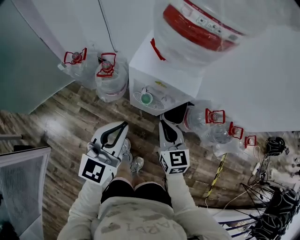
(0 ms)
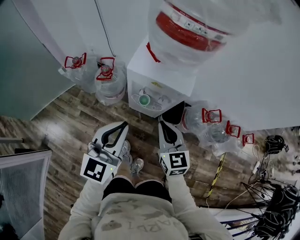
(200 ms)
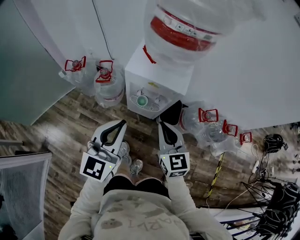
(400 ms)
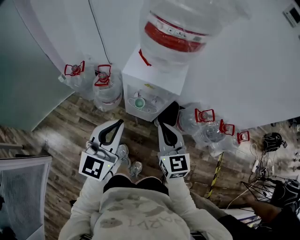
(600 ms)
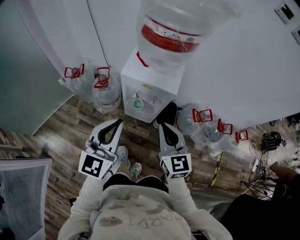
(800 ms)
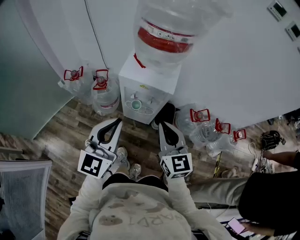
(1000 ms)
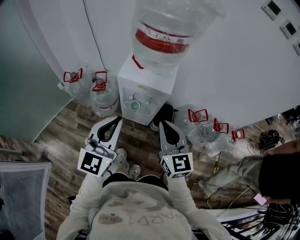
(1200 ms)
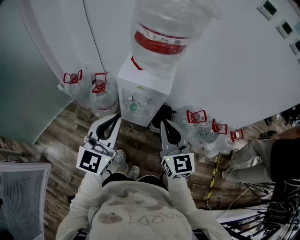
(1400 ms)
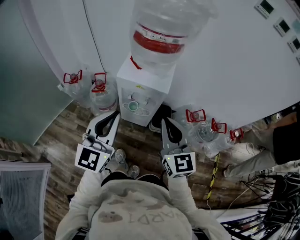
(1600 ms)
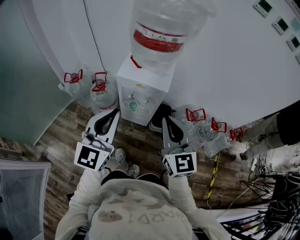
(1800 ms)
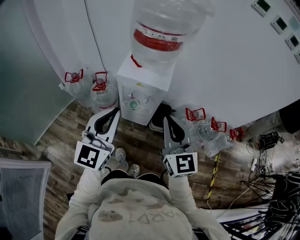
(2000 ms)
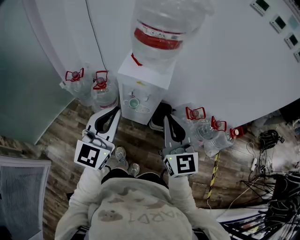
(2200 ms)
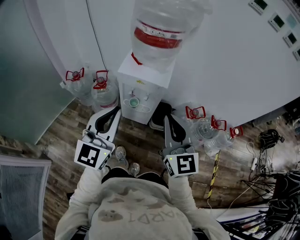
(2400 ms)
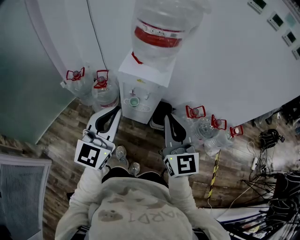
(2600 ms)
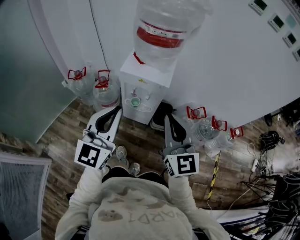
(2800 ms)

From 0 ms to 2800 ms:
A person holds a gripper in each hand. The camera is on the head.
From 0 ms to 1400 ms: The right gripper heads upward and backward, covering about 20 cm. The left gripper travels upward and backward by some 15 cm.
From 1400 ms to 2800 ms: The right gripper is displaced backward and upward by approximately 10 cm. Meanwhile the left gripper is displaced backward by some 5 cm.

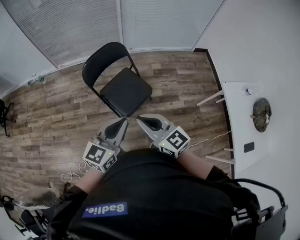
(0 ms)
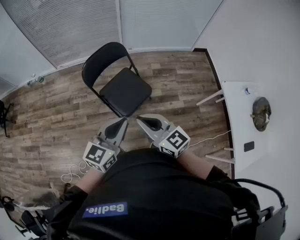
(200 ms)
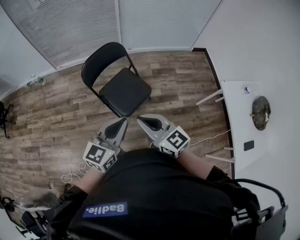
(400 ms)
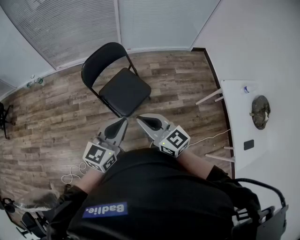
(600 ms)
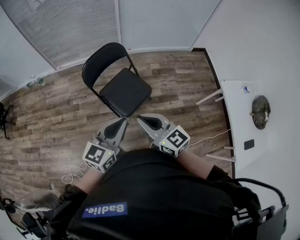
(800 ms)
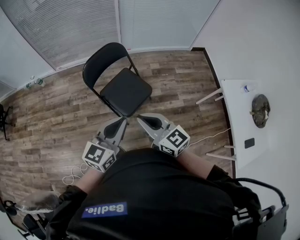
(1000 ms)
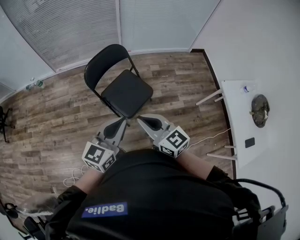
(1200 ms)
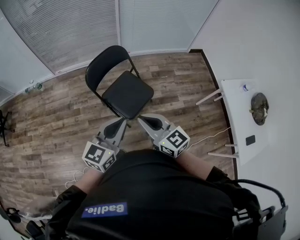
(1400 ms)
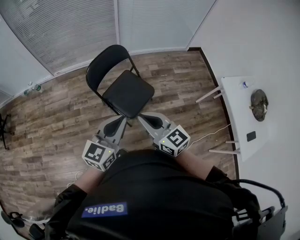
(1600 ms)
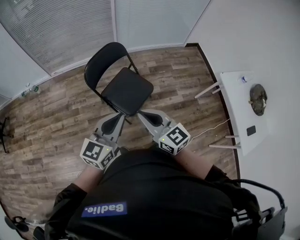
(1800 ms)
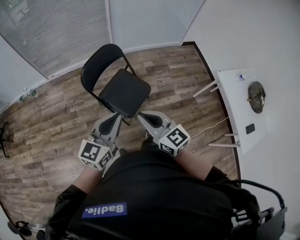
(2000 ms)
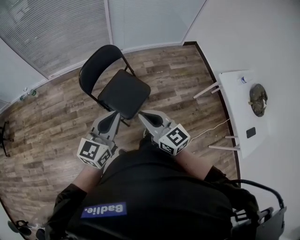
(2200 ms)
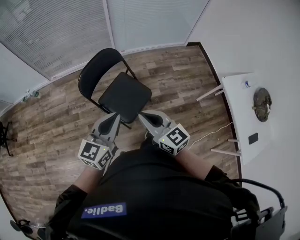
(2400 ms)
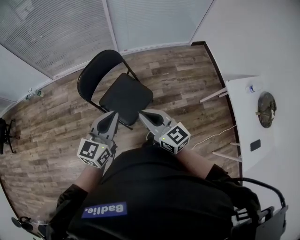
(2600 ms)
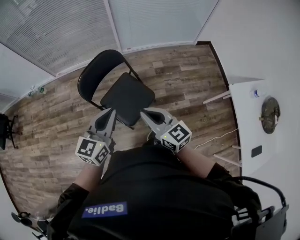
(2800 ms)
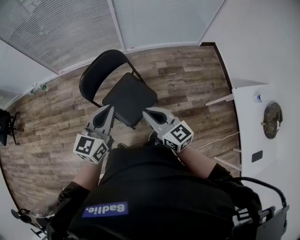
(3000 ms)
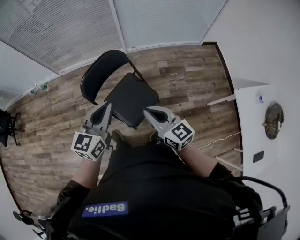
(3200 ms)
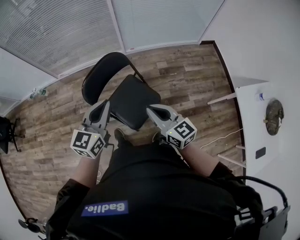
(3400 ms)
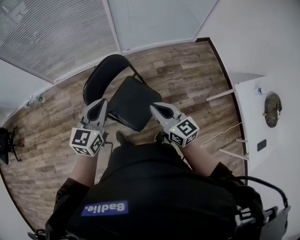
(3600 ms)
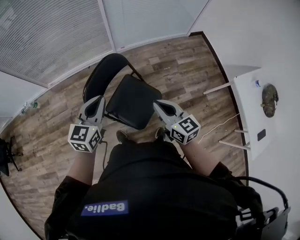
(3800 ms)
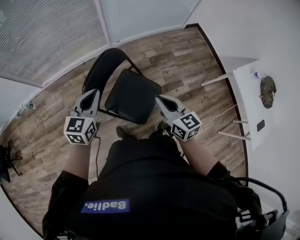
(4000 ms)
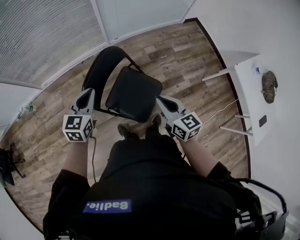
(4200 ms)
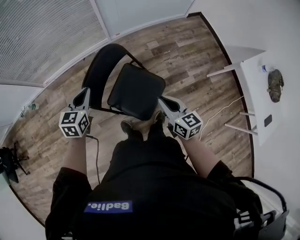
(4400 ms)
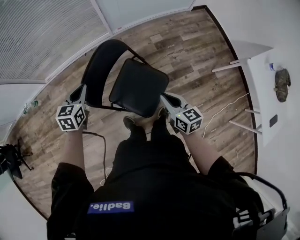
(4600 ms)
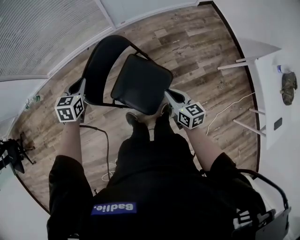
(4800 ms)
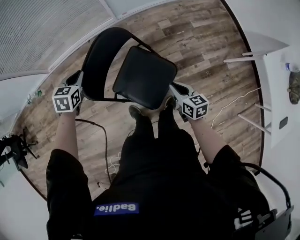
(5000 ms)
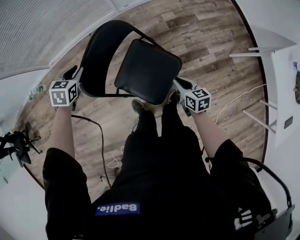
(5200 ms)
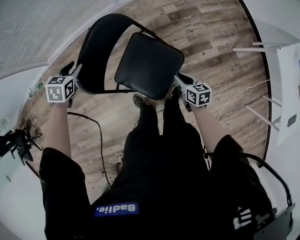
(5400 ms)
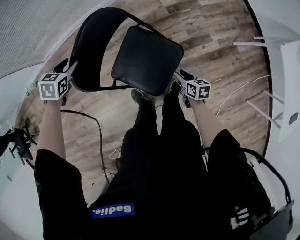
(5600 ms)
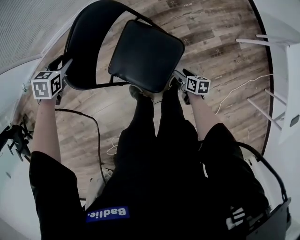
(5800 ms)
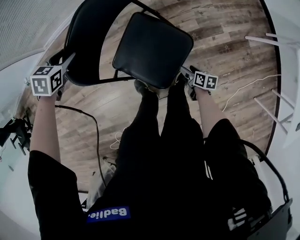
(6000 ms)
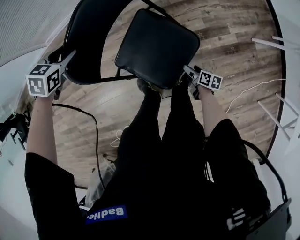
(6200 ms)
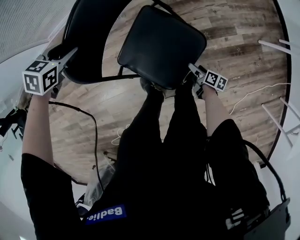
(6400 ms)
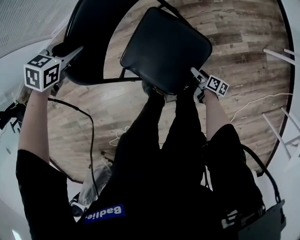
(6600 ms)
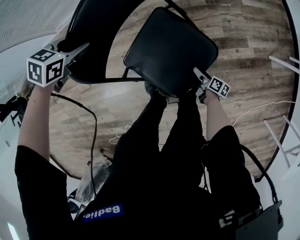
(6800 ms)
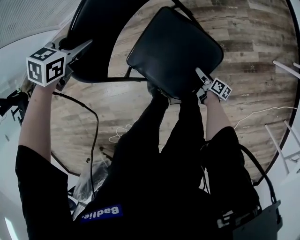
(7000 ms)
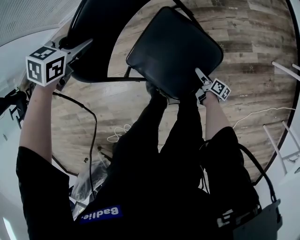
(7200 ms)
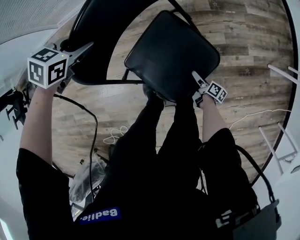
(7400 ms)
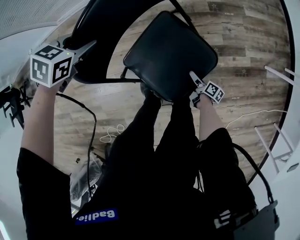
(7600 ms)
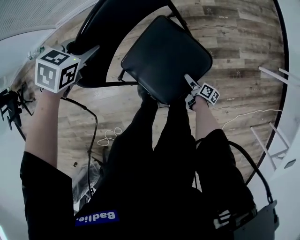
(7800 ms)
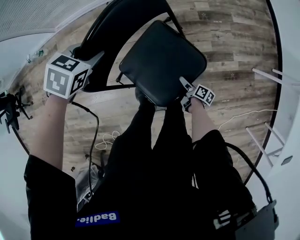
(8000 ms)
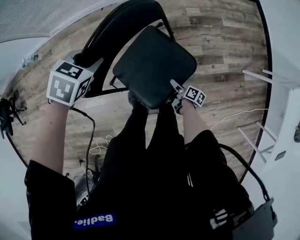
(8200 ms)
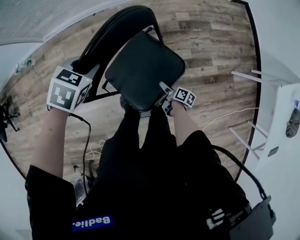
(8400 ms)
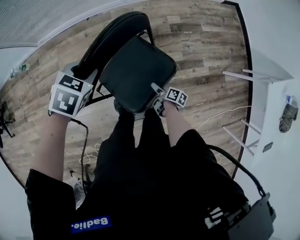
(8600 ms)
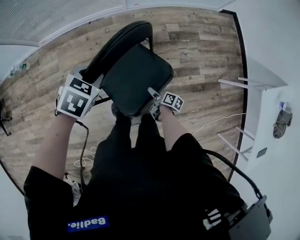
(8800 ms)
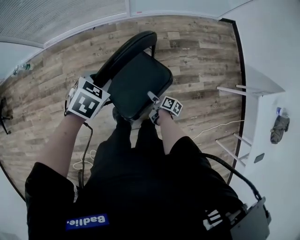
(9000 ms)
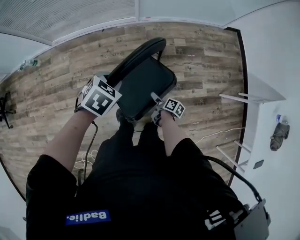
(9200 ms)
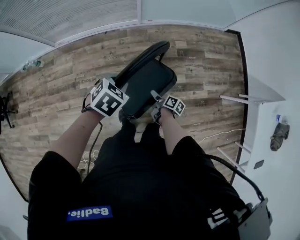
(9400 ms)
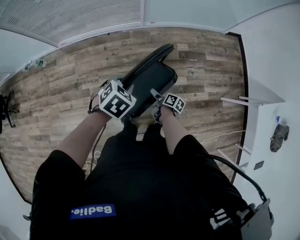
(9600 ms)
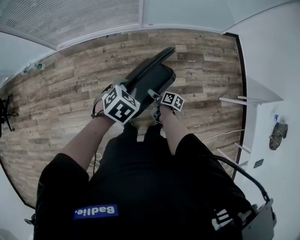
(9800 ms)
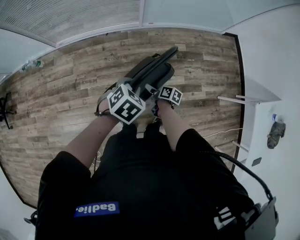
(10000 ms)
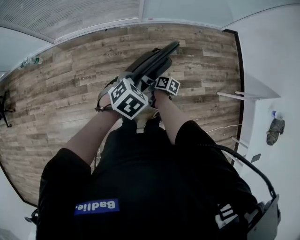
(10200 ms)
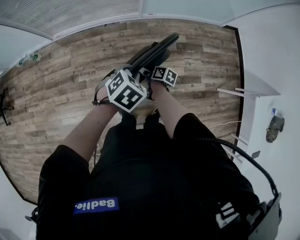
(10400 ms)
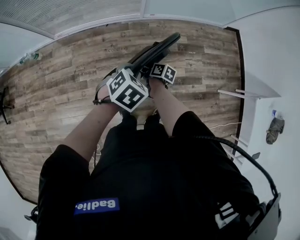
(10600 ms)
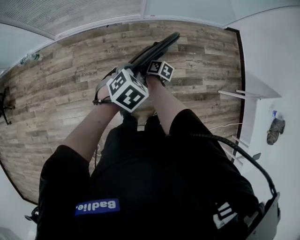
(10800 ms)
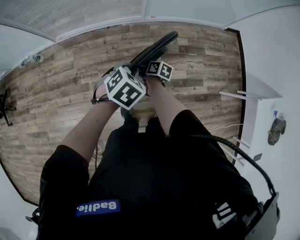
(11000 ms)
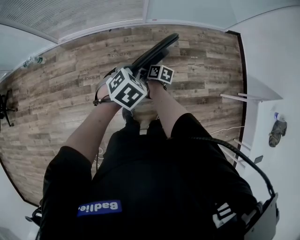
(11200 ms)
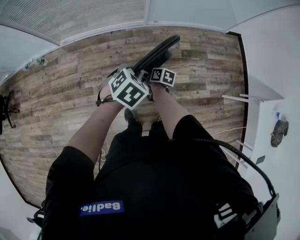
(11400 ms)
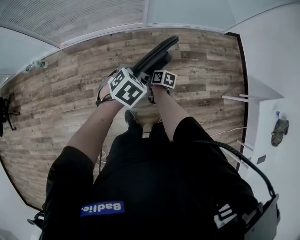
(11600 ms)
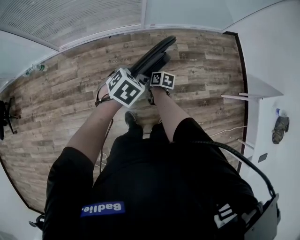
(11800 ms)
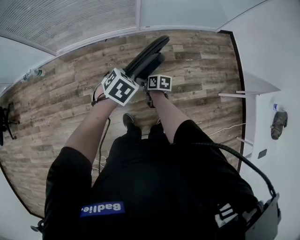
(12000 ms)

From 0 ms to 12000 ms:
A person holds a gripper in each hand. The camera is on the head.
From 0 ms to 1600 ms: Both grippers move to the left, about 10 cm.
From 1600 ms to 3000 ms: The two grippers go about 20 cm forward and to the right.
From 3000 ms to 4400 ms: The right gripper travels downward, forward and to the left by about 20 cm, and swivels roughly 30 degrees, while the left gripper moves forward, to the left and downward, roughly 35 cm, and turns by roughly 20 degrees.
From 4400 ms to 6000 ms: The left gripper shifts about 25 cm downward and forward, points its fingers approximately 30 degrees further downward, and opens. The right gripper moves downward, roughly 50 cm, rotates some 50 degrees, and opens up.
From 6000 ms to 7600 ms: The right gripper travels downward by roughly 10 cm, and swivels approximately 20 degrees.
From 7600 ms to 9000 ms: The right gripper heads upward, covering roughly 20 cm, while the left gripper moves upward, to the right and backward, about 15 cm.
From 9000 ms to 10400 ms: The right gripper goes roughly 25 cm to the left, upward and forward. Meanwhile the left gripper is displaced upward by roughly 5 cm.
From 10400 ms to 12000 ms: The grippers stay close to where they were, moving slightly.

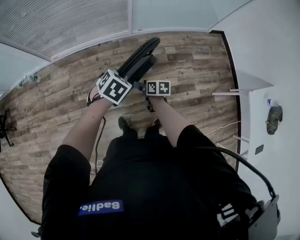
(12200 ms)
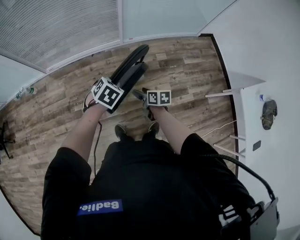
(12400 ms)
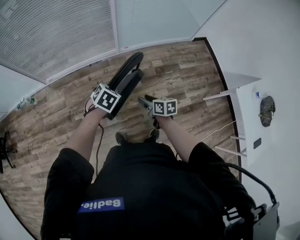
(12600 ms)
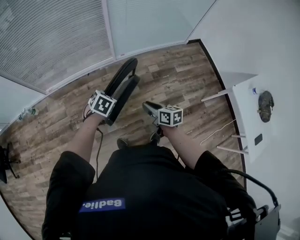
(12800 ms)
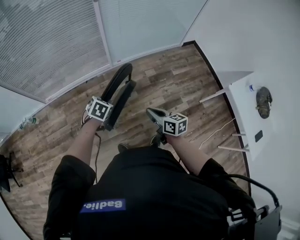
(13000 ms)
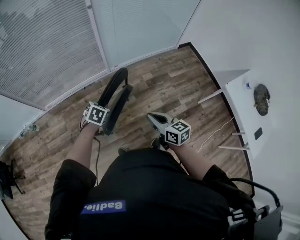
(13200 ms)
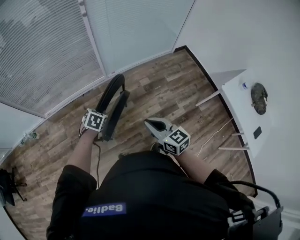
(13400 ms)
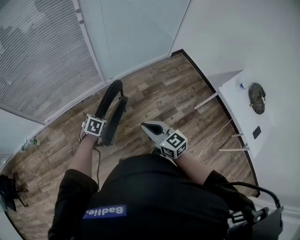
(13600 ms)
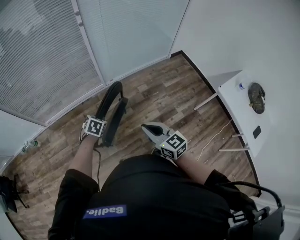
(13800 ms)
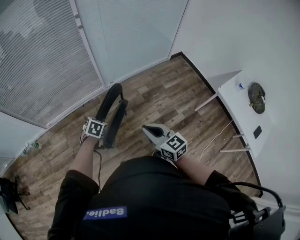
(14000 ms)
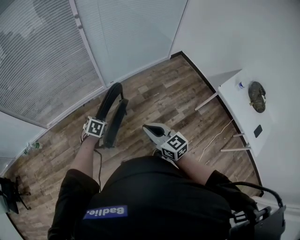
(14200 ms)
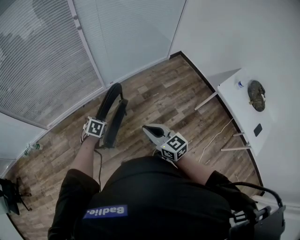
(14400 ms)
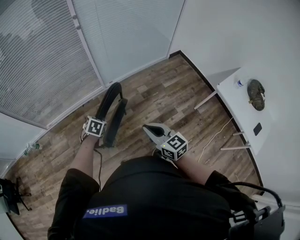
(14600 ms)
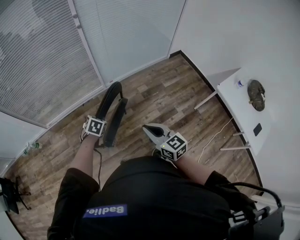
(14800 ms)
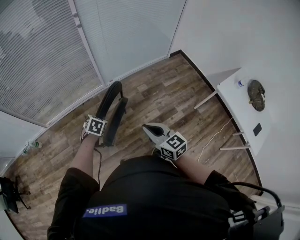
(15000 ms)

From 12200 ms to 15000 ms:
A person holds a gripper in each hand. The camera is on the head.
From 12200 ms to 13600 ms: The right gripper goes roughly 35 cm upward and backward, changes its angle by about 50 degrees, and closes.
From 13600 ms to 15000 ms: The grippers stay close to where they were, moving slightly.

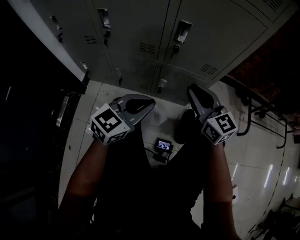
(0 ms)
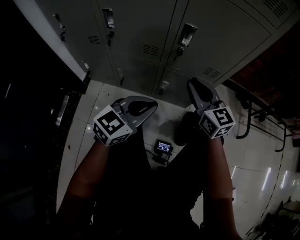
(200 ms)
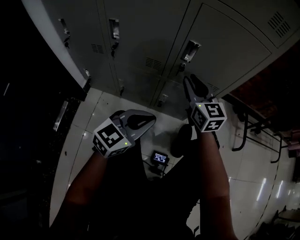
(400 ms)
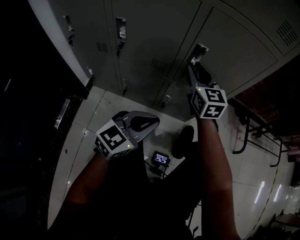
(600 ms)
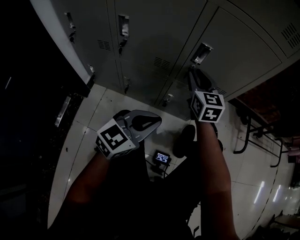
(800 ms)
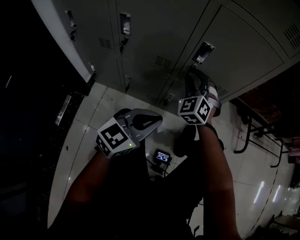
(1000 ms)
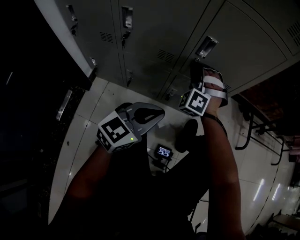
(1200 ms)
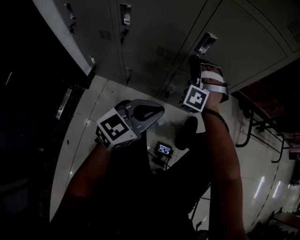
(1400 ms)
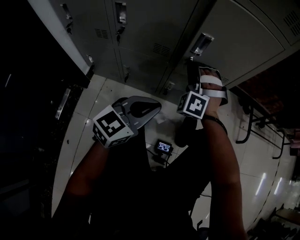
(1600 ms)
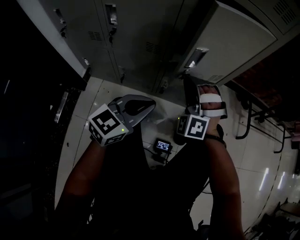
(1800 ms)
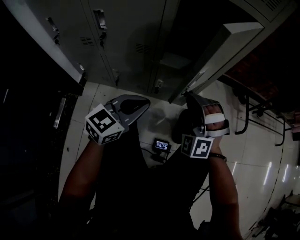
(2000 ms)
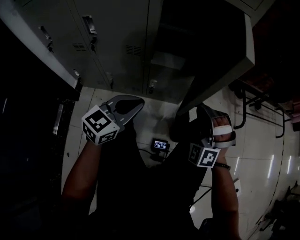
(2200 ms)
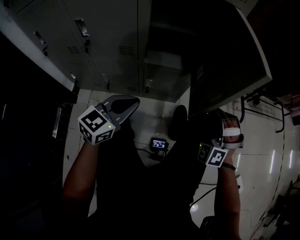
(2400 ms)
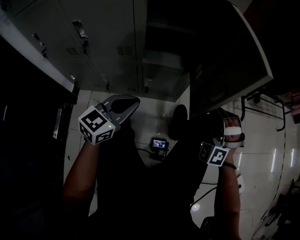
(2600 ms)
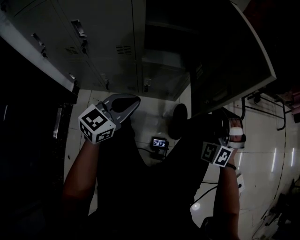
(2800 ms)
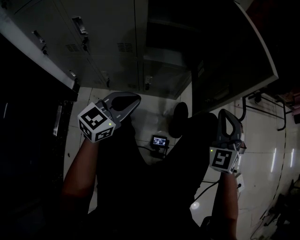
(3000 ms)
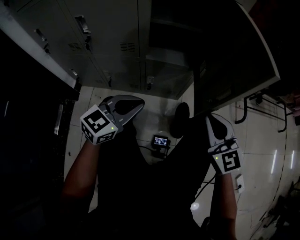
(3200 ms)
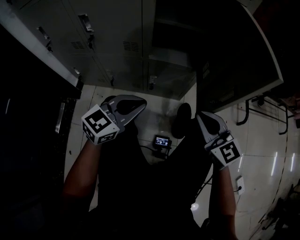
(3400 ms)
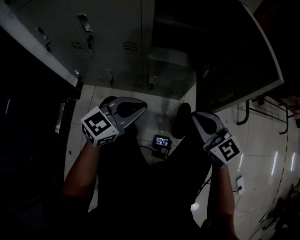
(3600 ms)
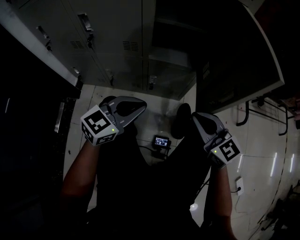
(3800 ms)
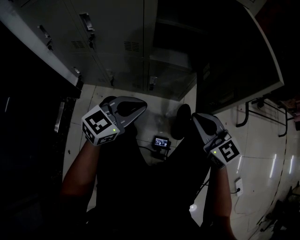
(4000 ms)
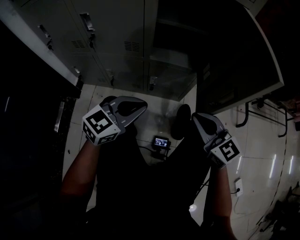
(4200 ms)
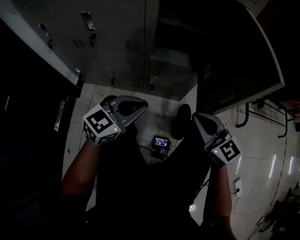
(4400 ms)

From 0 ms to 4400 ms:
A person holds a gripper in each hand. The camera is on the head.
From 0 ms to 1400 ms: The right gripper shifts about 15 cm forward and to the left, and twists approximately 90 degrees counterclockwise, seen from behind.
From 1400 ms to 3000 ms: The right gripper travels to the right by some 30 cm, and rotates around the line of its fingers by about 40 degrees, clockwise from behind.
From 3000 ms to 4400 ms: The right gripper travels to the left by about 10 cm, and swivels about 60 degrees.

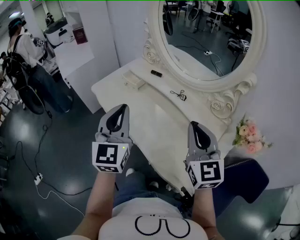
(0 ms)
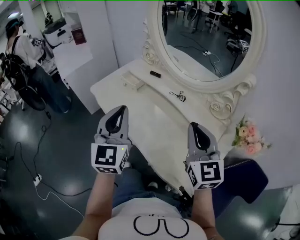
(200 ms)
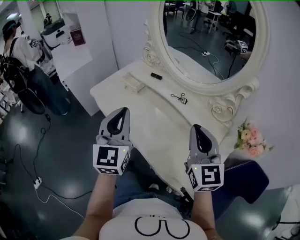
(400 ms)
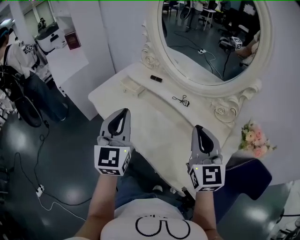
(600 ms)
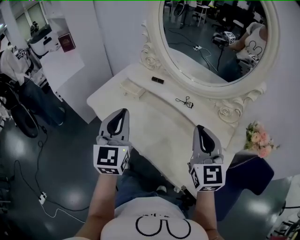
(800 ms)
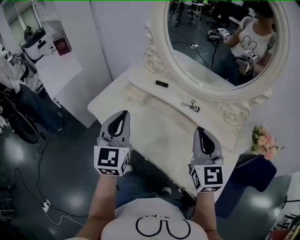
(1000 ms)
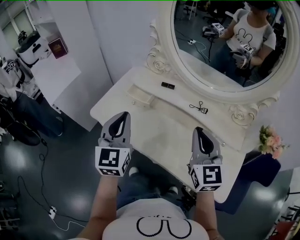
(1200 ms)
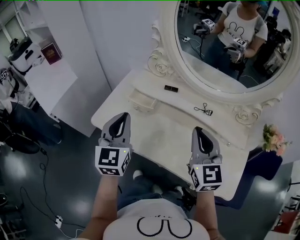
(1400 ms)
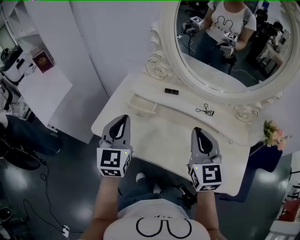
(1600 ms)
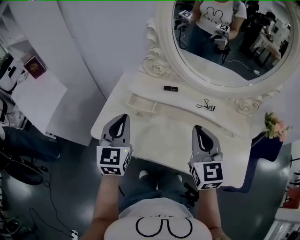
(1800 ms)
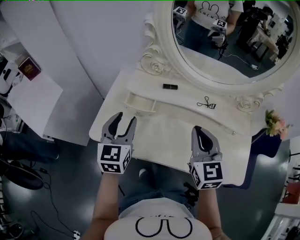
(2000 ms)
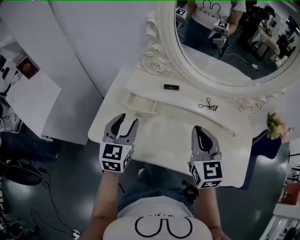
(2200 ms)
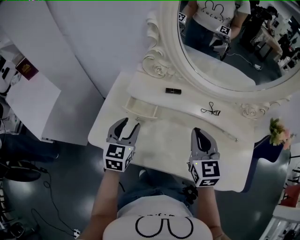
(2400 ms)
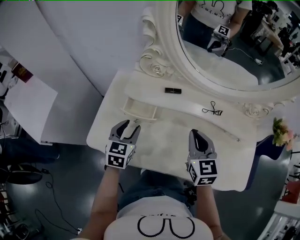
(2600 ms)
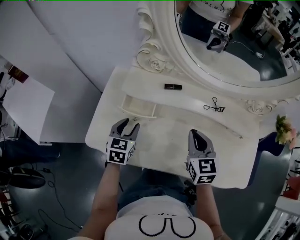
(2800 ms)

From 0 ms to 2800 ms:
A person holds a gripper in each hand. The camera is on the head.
From 0 ms to 1400 ms: The right gripper shifts approximately 25 cm to the left and forward, and turns by approximately 20 degrees; the left gripper is displaced forward and to the left by some 30 cm.
From 1400 ms to 2800 ms: The two grippers go about 20 cm downward and forward. The right gripper swivels about 20 degrees, while the left gripper points its fingers approximately 30 degrees further downward, and opens.
